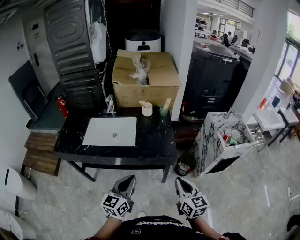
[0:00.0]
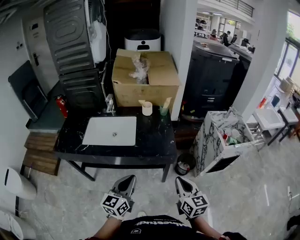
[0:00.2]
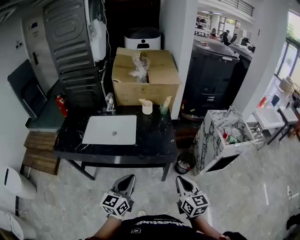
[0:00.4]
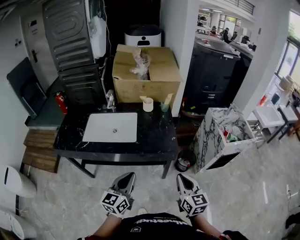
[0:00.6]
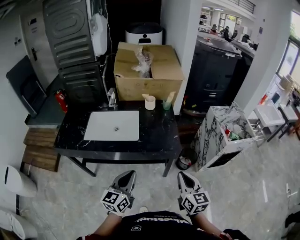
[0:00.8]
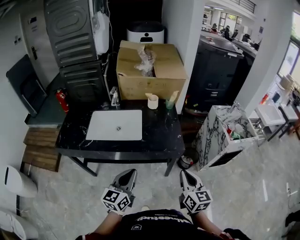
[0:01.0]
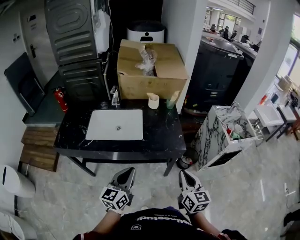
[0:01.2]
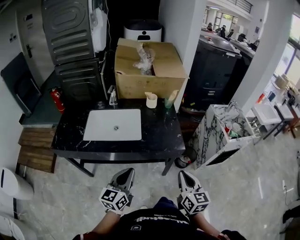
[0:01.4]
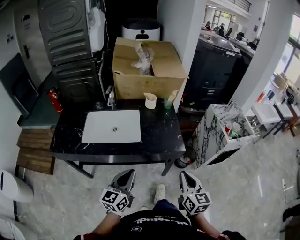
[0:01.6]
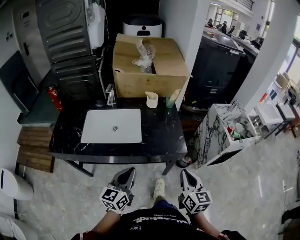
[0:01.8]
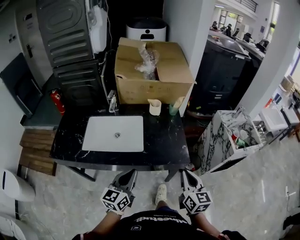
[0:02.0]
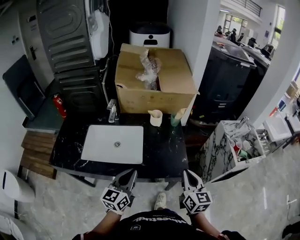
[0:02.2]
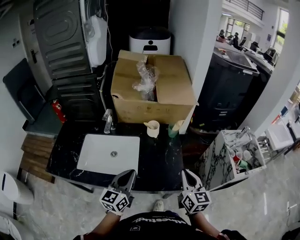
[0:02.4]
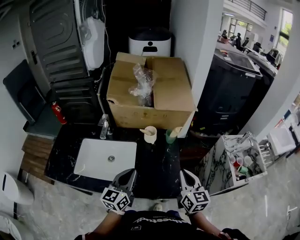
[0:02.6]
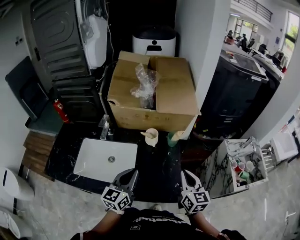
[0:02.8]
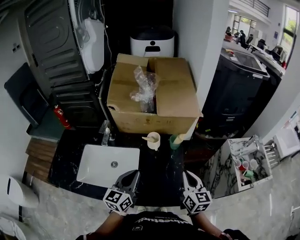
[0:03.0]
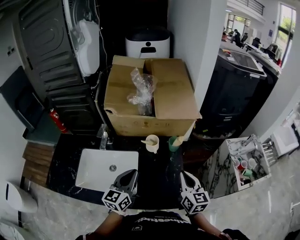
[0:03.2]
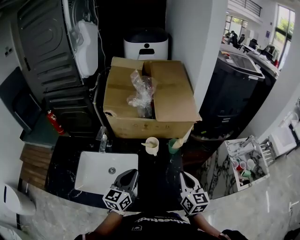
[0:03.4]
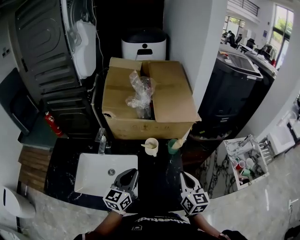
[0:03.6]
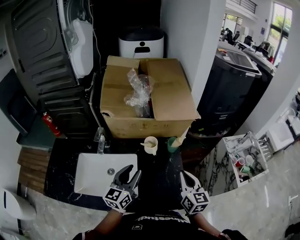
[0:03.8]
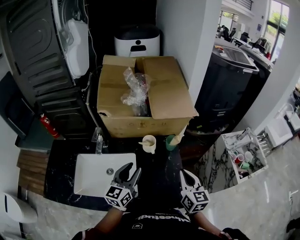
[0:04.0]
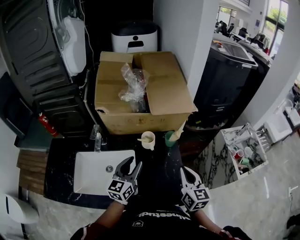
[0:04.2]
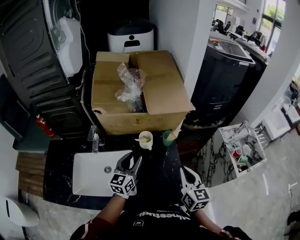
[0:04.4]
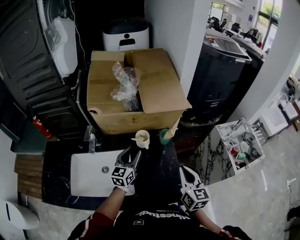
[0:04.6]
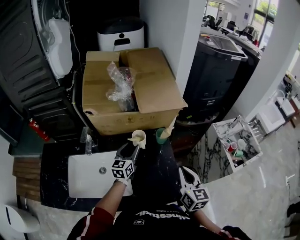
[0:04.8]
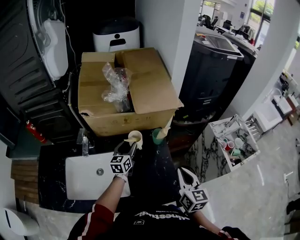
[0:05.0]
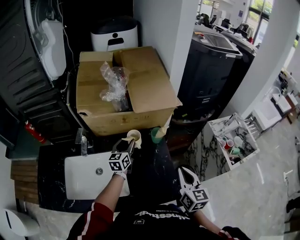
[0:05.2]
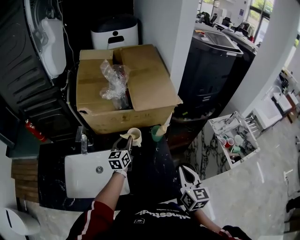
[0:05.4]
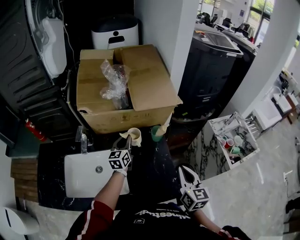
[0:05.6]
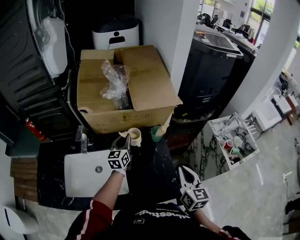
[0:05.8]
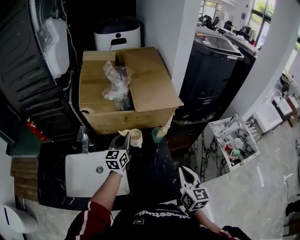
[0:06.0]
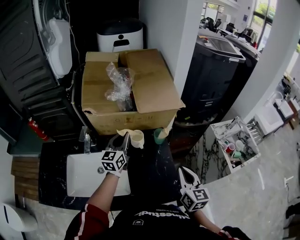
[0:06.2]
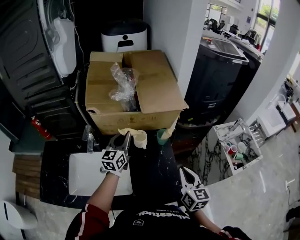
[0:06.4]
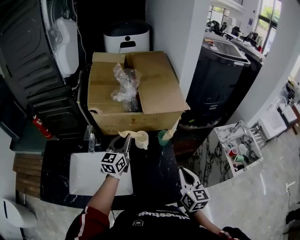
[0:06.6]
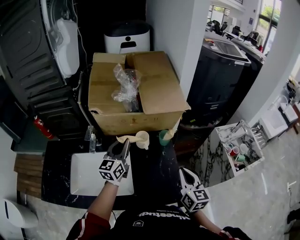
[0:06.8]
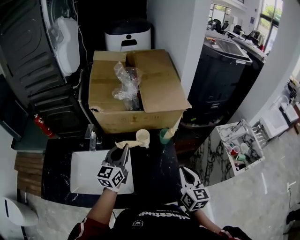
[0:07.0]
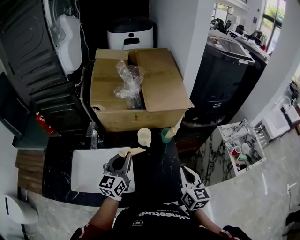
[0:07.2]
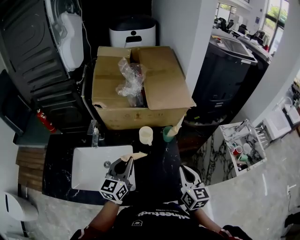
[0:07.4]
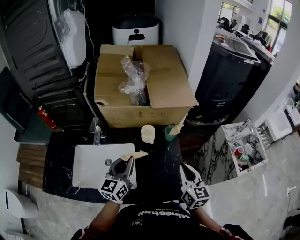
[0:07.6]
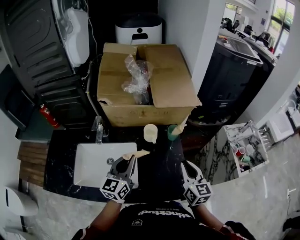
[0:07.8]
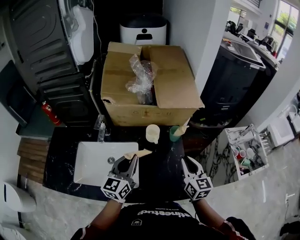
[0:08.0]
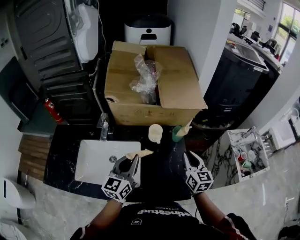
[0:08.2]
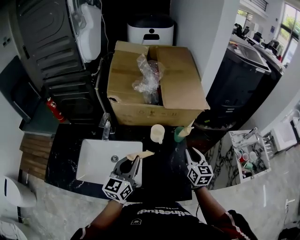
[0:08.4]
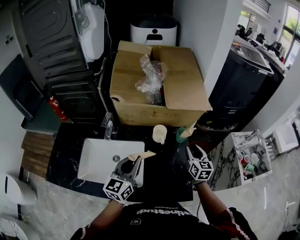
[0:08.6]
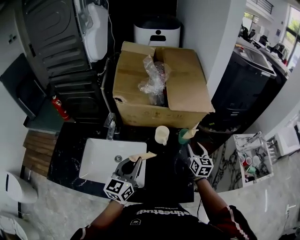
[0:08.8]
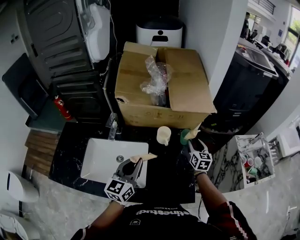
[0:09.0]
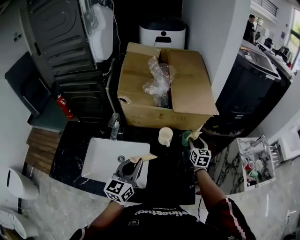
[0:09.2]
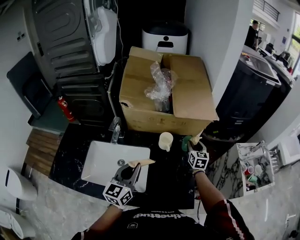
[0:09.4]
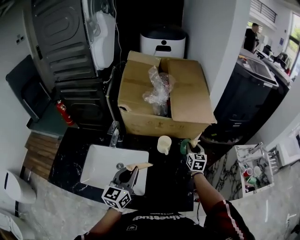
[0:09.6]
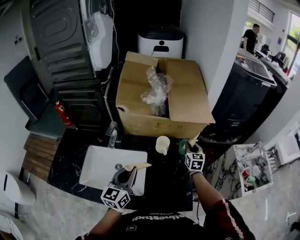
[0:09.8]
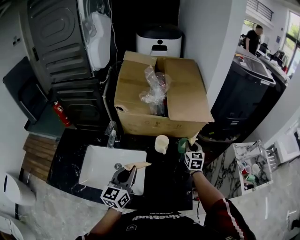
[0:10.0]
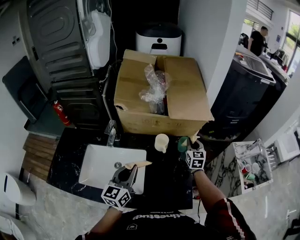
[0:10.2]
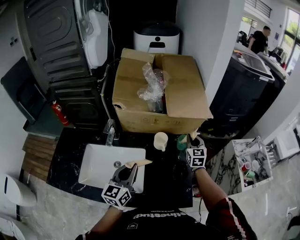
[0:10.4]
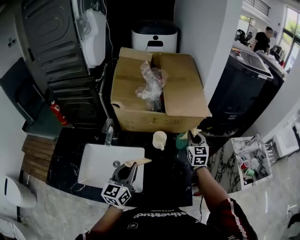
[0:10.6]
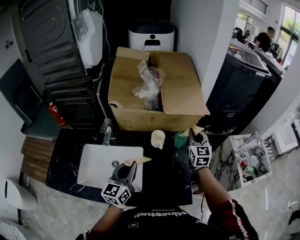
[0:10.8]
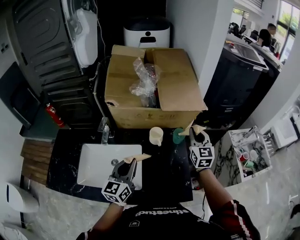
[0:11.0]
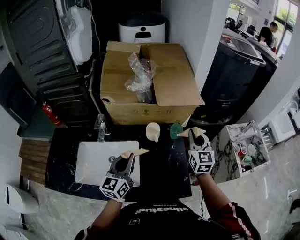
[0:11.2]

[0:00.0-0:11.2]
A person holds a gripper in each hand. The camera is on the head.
0:00.0 to 0:01.6: Both grippers travel together to the left, approximately 5 cm.
0:01.6 to 0:03.2: The grippers both shift forward by about 35 cm.
0:03.2 to 0:04.8: The left gripper goes about 20 cm forward and downward, and opens its fingers.
0:04.8 to 0:06.4: The left gripper shifts some 10 cm upward, and closes.
0:06.4 to 0:08.0: The right gripper changes place by about 5 cm. The left gripper shifts roughly 15 cm backward.
0:08.0 to 0:09.6: The right gripper heads forward and downward, covering roughly 20 cm.
0:09.6 to 0:11.2: The right gripper heads upward and backward, covering roughly 15 cm, and closes.

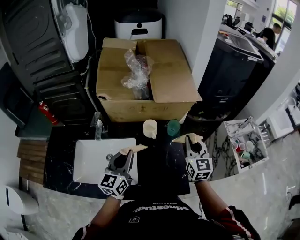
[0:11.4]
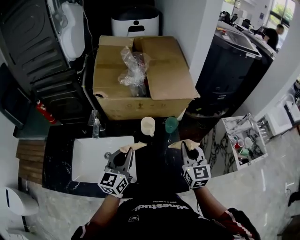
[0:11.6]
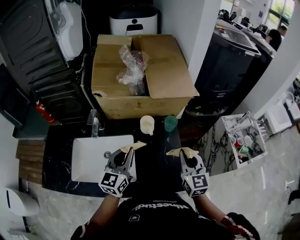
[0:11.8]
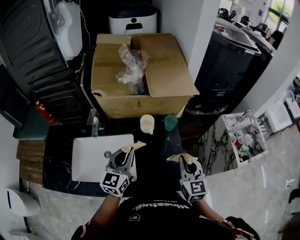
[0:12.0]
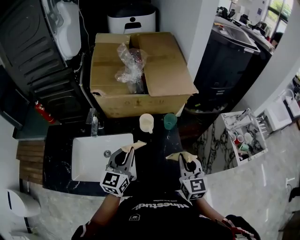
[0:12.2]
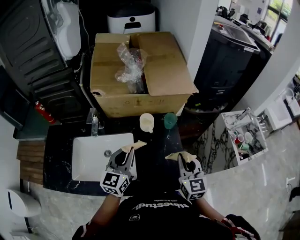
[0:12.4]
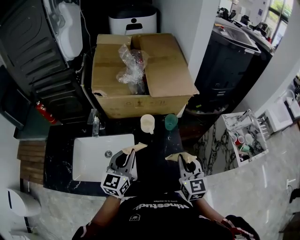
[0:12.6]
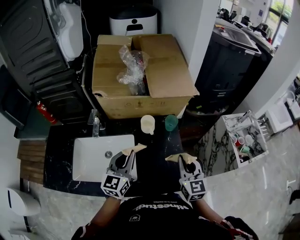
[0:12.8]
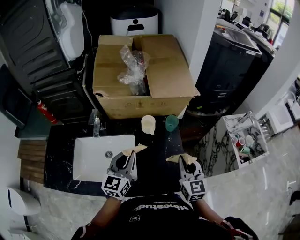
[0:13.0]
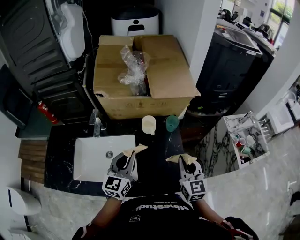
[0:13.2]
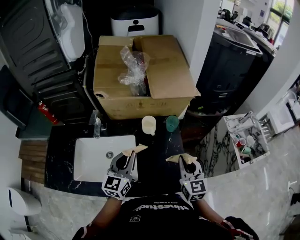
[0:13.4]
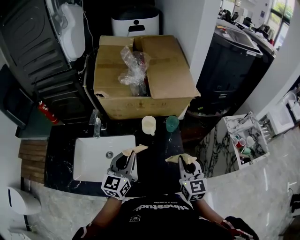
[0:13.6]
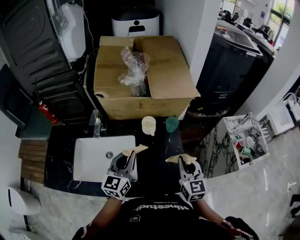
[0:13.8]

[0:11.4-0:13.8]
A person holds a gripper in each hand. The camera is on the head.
0:11.4 to 0:12.6: The right gripper travels backward by approximately 10 cm.
0:12.6 to 0:13.8: Neither gripper changes place.

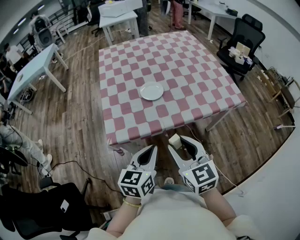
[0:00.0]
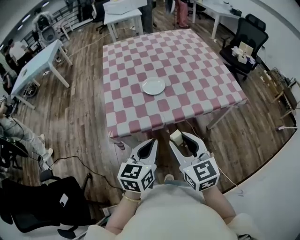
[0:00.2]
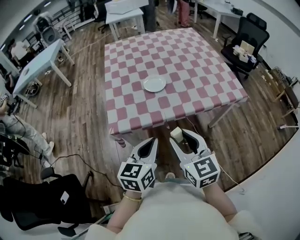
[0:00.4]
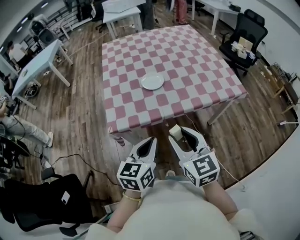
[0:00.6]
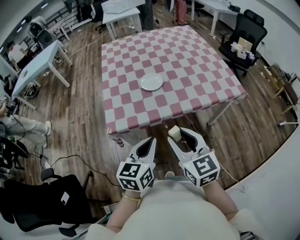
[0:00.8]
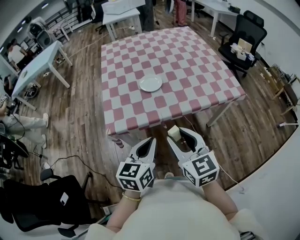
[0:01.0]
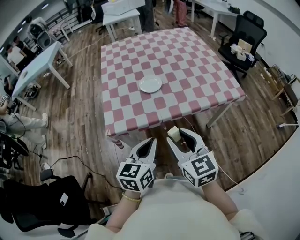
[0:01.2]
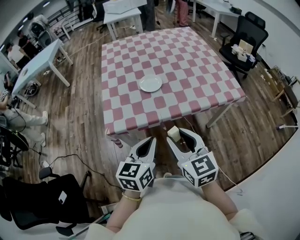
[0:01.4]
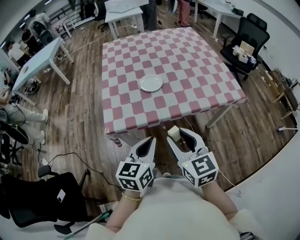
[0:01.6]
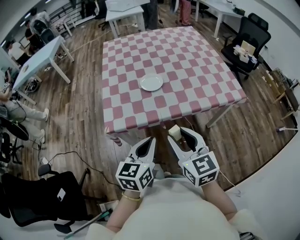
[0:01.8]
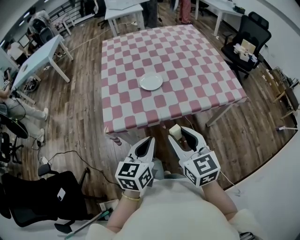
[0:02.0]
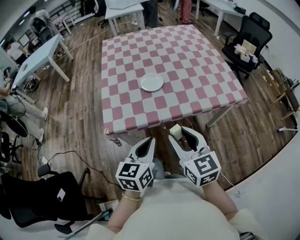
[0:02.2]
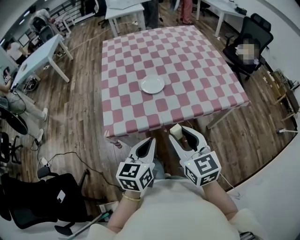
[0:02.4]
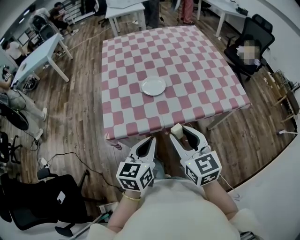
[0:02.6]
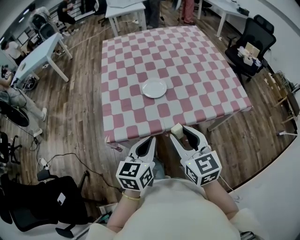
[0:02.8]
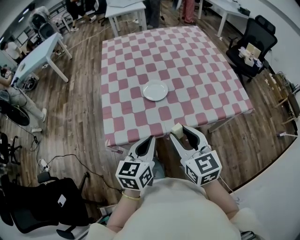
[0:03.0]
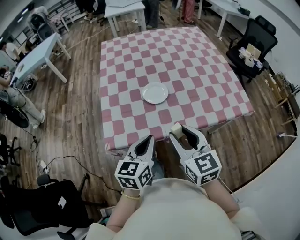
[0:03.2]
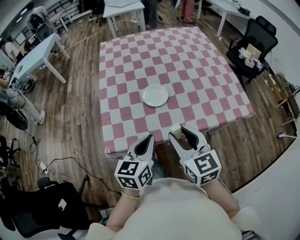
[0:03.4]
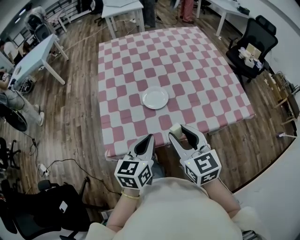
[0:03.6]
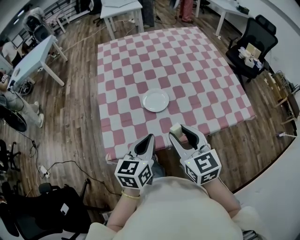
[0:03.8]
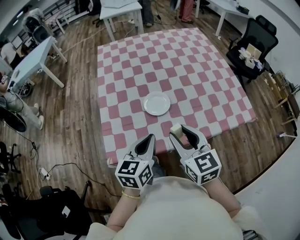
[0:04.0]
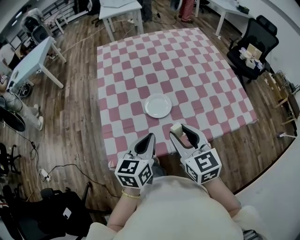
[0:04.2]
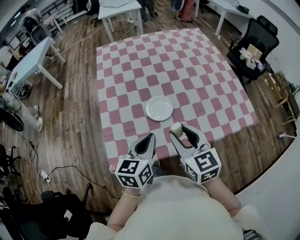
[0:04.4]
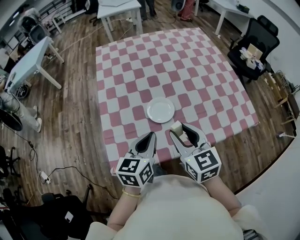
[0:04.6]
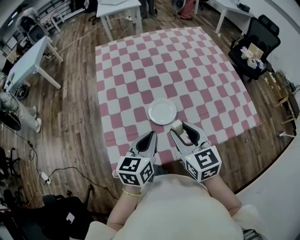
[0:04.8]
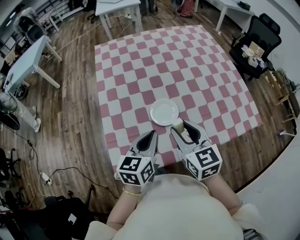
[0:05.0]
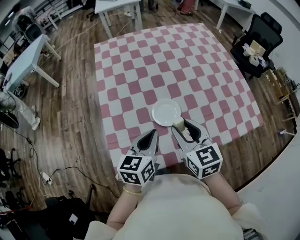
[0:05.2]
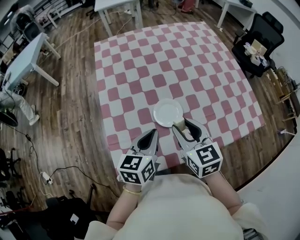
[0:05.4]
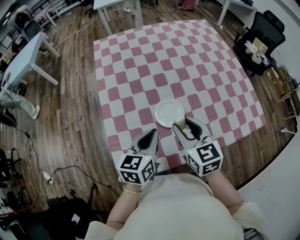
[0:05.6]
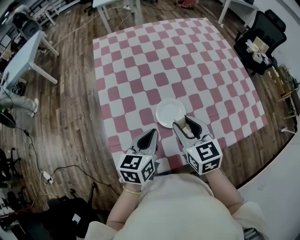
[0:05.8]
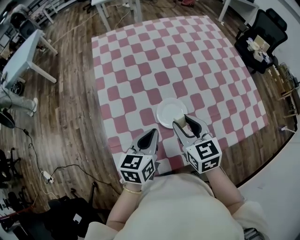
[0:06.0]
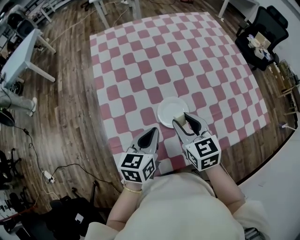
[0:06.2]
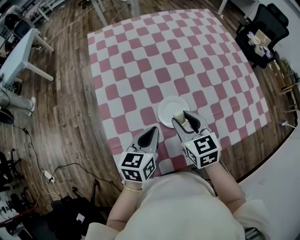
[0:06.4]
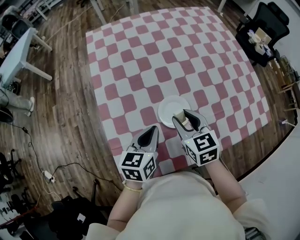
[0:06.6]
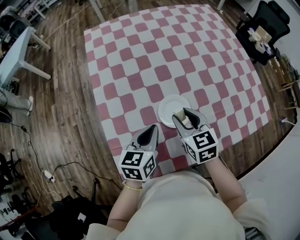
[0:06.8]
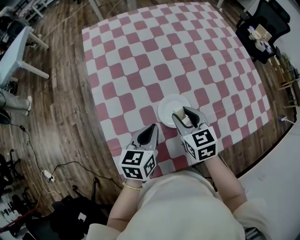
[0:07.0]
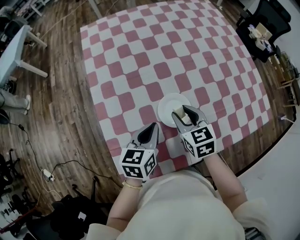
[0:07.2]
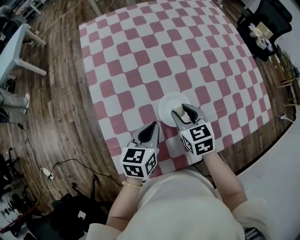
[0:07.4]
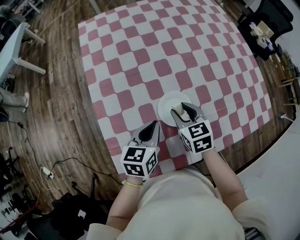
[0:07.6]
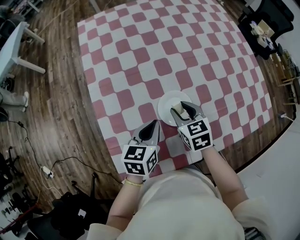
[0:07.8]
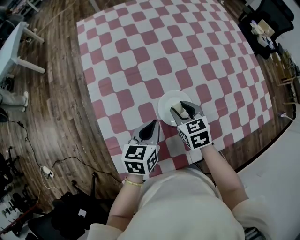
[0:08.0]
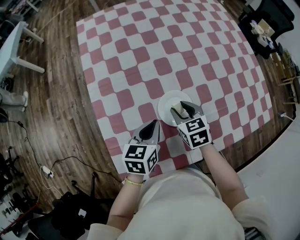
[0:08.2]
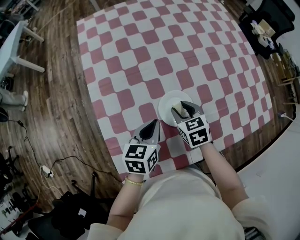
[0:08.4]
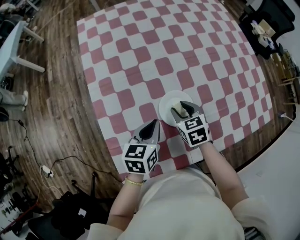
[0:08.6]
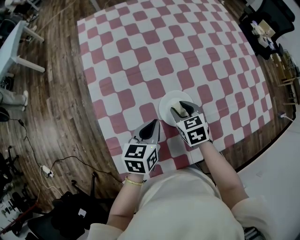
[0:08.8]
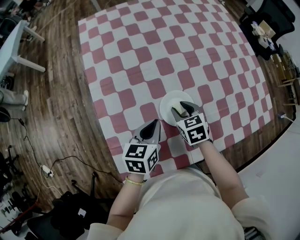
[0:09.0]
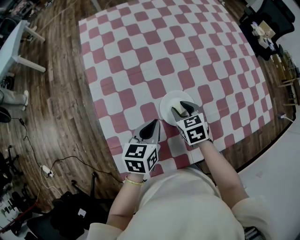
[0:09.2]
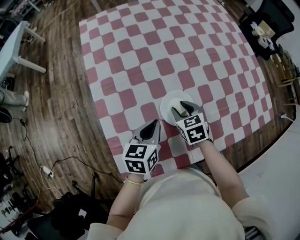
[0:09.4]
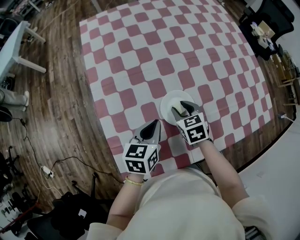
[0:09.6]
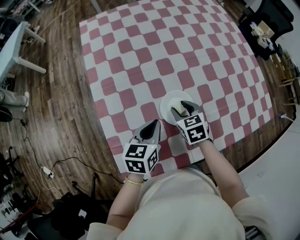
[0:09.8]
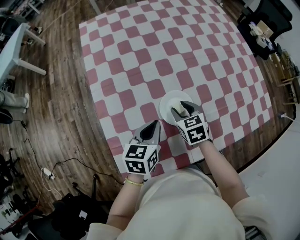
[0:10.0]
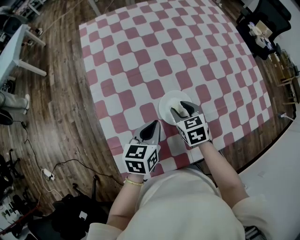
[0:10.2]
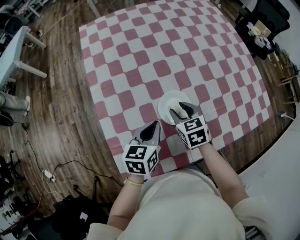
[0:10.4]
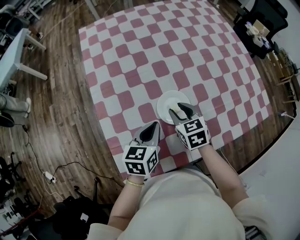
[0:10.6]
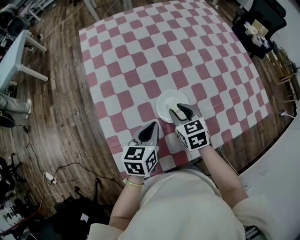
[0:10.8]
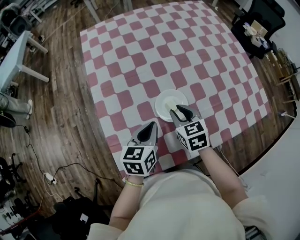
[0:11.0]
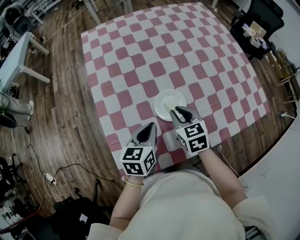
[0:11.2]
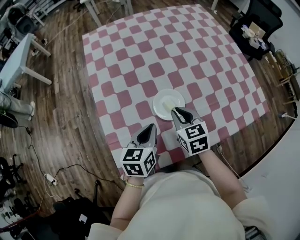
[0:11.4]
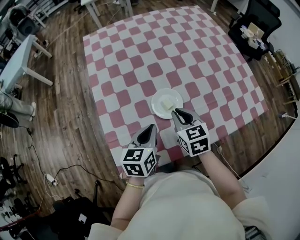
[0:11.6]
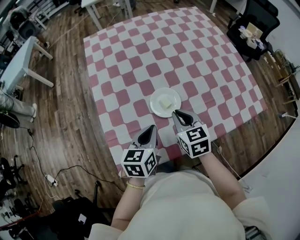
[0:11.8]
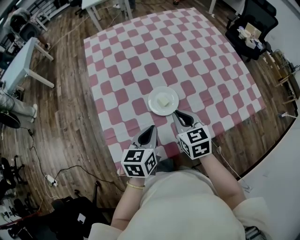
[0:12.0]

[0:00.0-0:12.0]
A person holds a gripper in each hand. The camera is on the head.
0:00.0 to 0:01.6: The grippers stay close to where they were, moving slightly.
0:01.6 to 0:03.0: Both grippers travel together forward, approximately 10 cm.
0:03.0 to 0:04.4: Both grippers travel together forward, roughly 15 cm.
0:04.4 to 0:06.0: The left gripper goes approximately 15 cm forward, to the left and downward; the right gripper travels forward and downward by about 15 cm.
0:06.0 to 0:07.6: The right gripper is displaced downward and forward by roughly 15 cm; the left gripper travels downward and forward by about 10 cm.
0:07.6 to 0:09.0: The right gripper heads downward, covering some 5 cm.
0:09.0 to 0:10.4: The grippers move only a little.
0:10.4 to 0:12.0: The right gripper travels backward and upward by some 15 cm, and closes up. The left gripper heads backward, covering about 10 cm.
